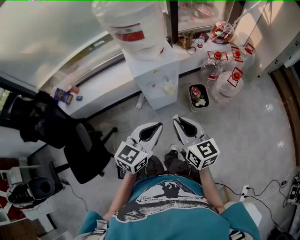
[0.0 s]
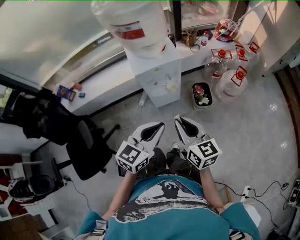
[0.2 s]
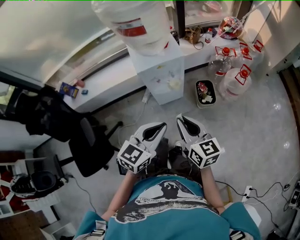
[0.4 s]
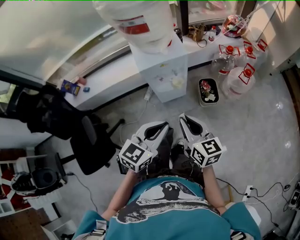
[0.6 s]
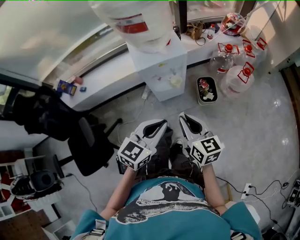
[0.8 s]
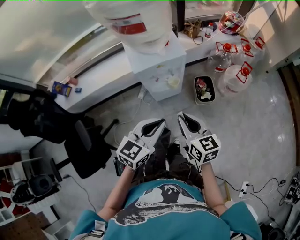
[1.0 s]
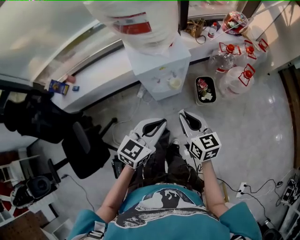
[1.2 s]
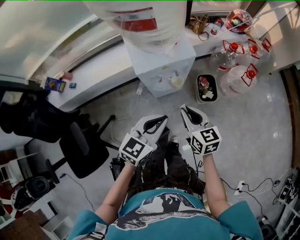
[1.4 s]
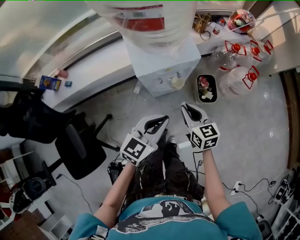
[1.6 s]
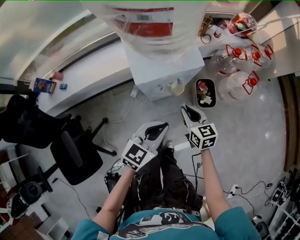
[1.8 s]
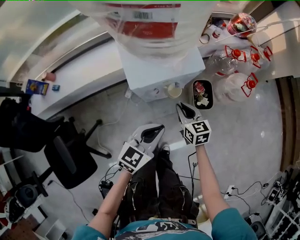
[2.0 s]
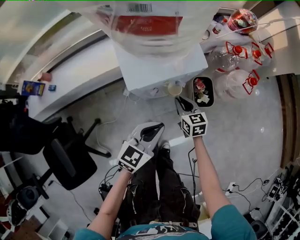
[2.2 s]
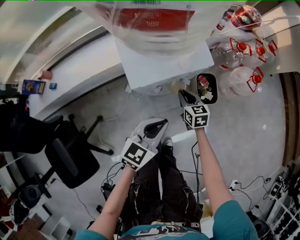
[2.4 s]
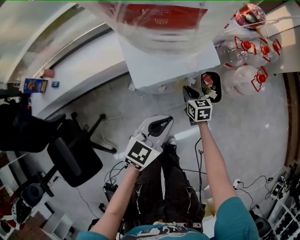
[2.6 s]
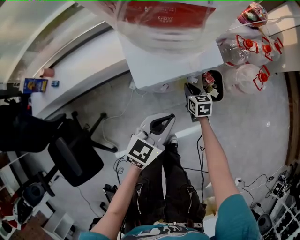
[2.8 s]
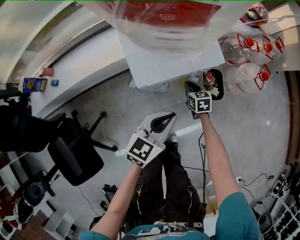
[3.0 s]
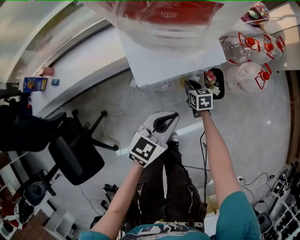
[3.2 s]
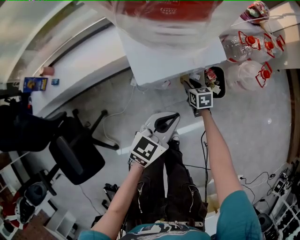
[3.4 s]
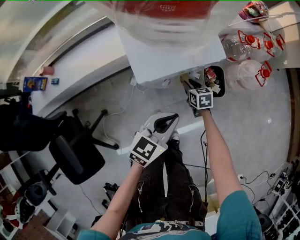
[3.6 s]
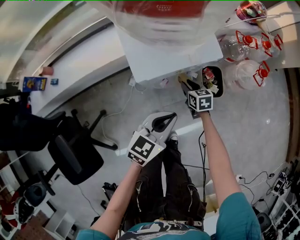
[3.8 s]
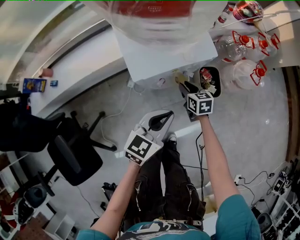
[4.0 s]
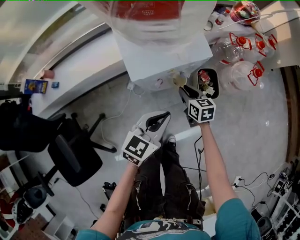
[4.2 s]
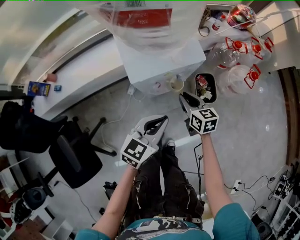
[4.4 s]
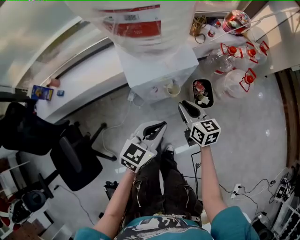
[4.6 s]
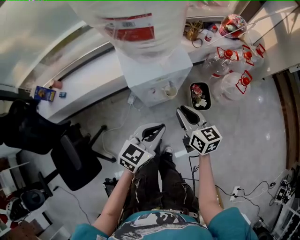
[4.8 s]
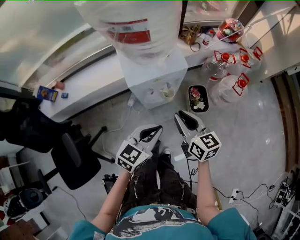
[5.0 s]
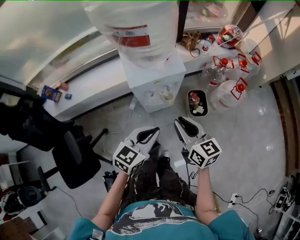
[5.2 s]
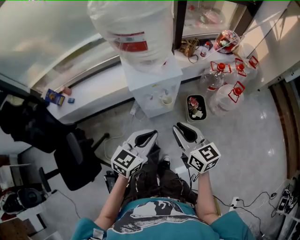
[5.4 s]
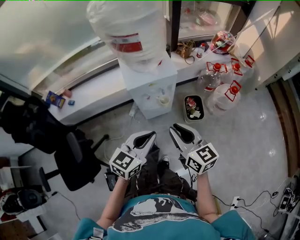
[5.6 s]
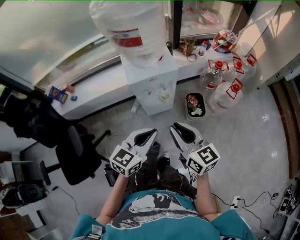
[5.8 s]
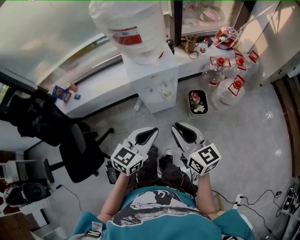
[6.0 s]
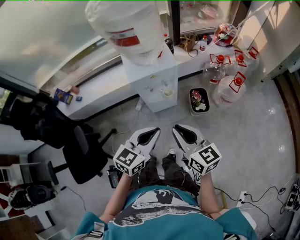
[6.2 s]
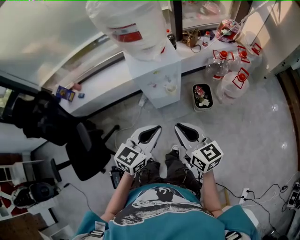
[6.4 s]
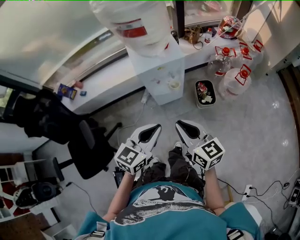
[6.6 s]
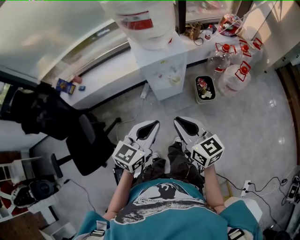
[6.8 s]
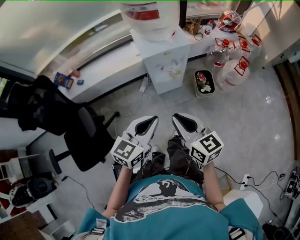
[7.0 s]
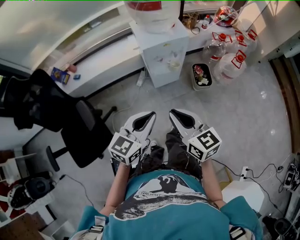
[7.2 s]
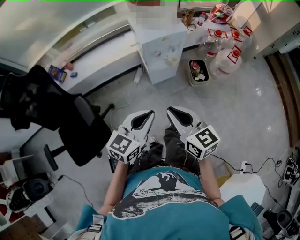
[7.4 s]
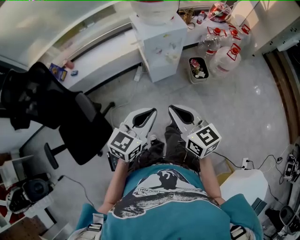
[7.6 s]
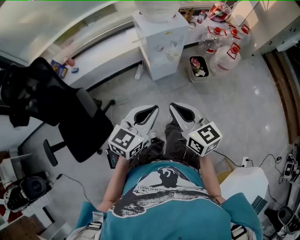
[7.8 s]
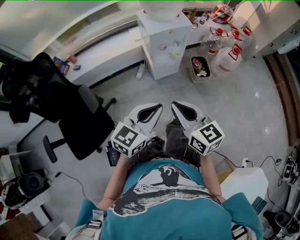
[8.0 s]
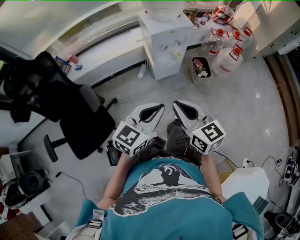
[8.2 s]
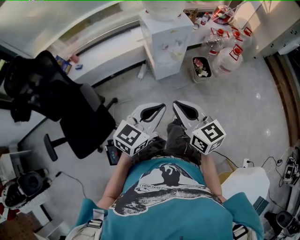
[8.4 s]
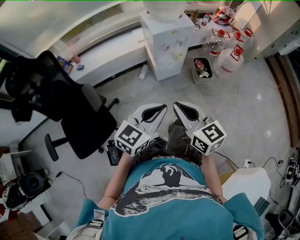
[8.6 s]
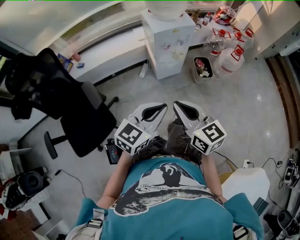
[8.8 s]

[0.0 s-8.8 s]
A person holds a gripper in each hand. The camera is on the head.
0.0 to 1.4 s: The left gripper moves forward and downward, roughly 15 cm. Meanwhile the right gripper shifts approximately 20 cm downward and forward.
1.4 to 3.0 s: The left gripper goes approximately 15 cm downward and forward, while the right gripper travels downward and forward by roughly 35 cm, and rotates about 20 degrees.
3.0 to 4.4 s: The right gripper travels upward and backward by about 15 cm.
4.4 to 5.8 s: The right gripper moves upward and backward, roughly 35 cm, and rotates approximately 20 degrees, while the left gripper goes some 20 cm upward and backward.
5.8 to 7.4 s: The grippers both shift backward and to the left by some 20 cm.
7.4 to 8.8 s: The grippers both shift backward by about 10 cm.

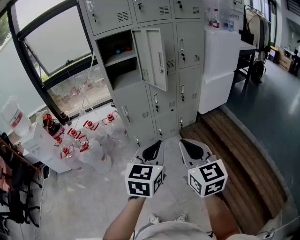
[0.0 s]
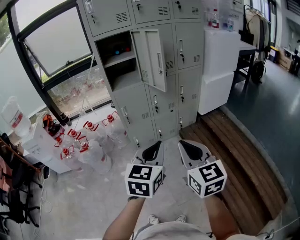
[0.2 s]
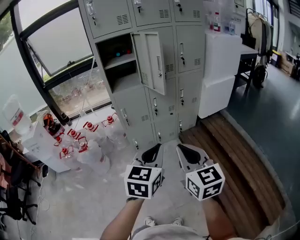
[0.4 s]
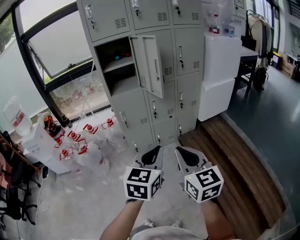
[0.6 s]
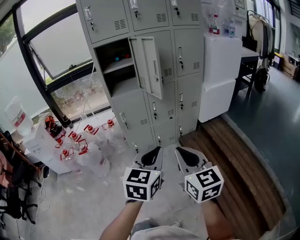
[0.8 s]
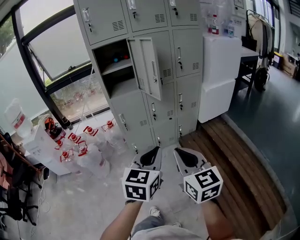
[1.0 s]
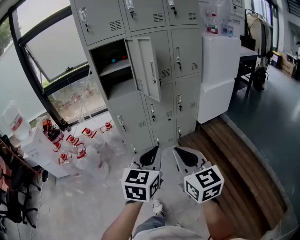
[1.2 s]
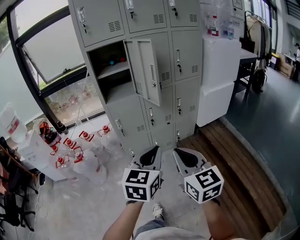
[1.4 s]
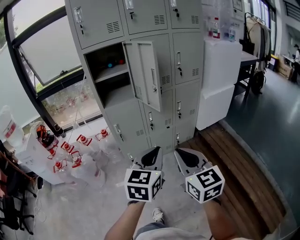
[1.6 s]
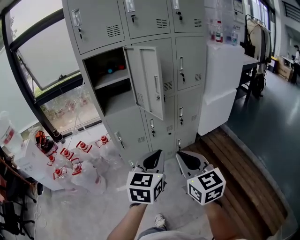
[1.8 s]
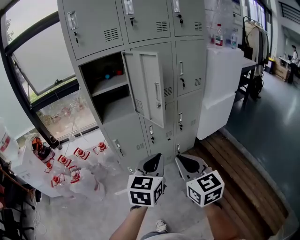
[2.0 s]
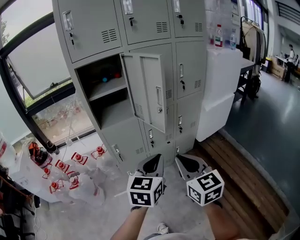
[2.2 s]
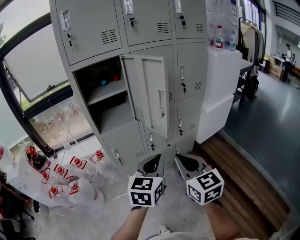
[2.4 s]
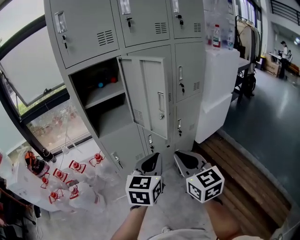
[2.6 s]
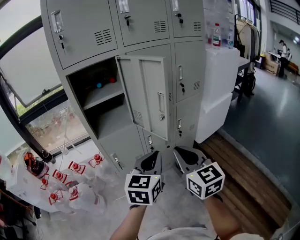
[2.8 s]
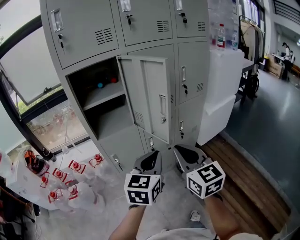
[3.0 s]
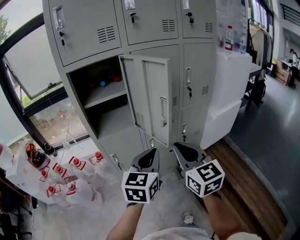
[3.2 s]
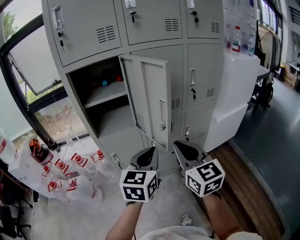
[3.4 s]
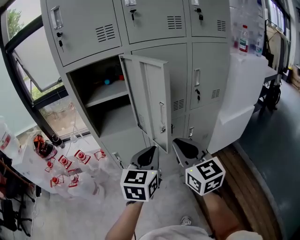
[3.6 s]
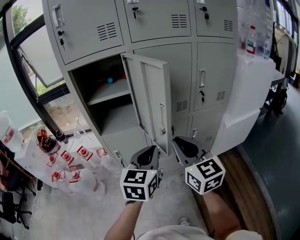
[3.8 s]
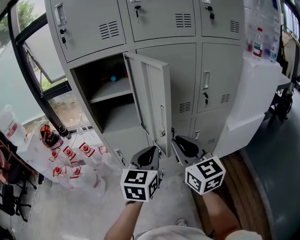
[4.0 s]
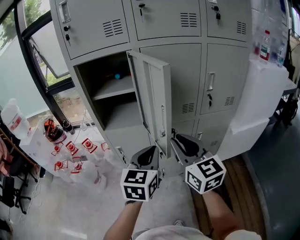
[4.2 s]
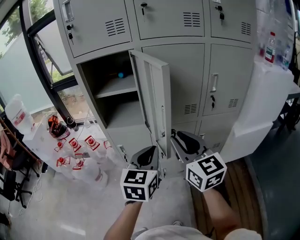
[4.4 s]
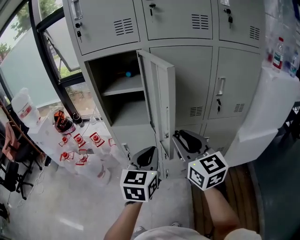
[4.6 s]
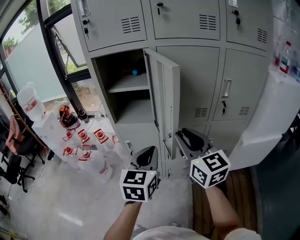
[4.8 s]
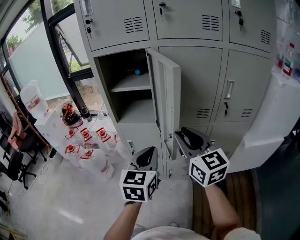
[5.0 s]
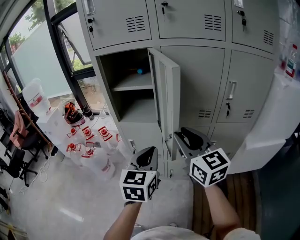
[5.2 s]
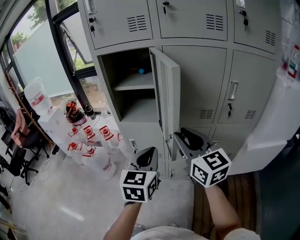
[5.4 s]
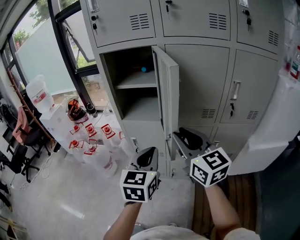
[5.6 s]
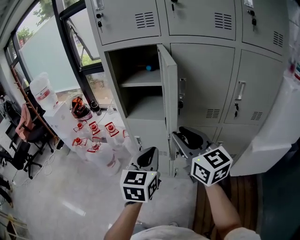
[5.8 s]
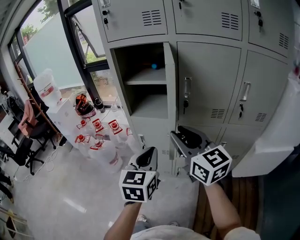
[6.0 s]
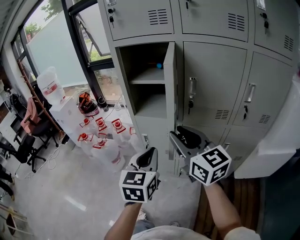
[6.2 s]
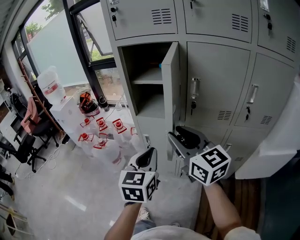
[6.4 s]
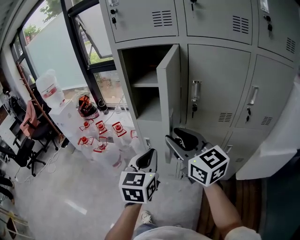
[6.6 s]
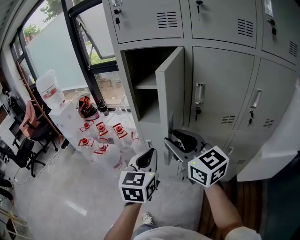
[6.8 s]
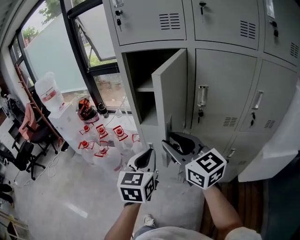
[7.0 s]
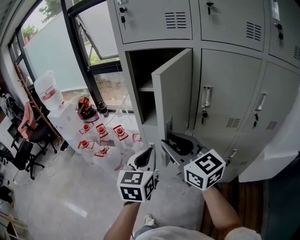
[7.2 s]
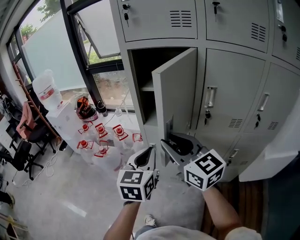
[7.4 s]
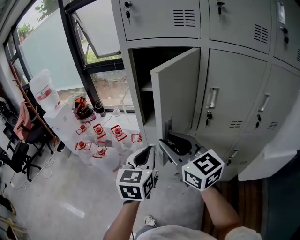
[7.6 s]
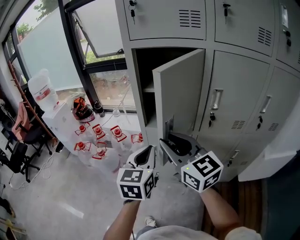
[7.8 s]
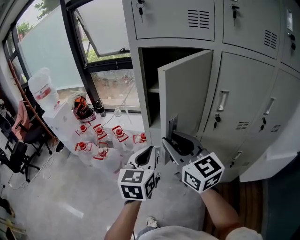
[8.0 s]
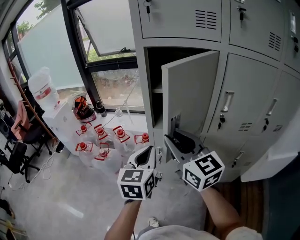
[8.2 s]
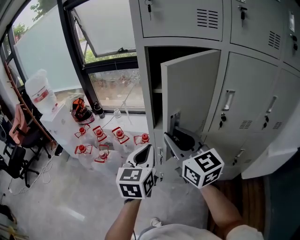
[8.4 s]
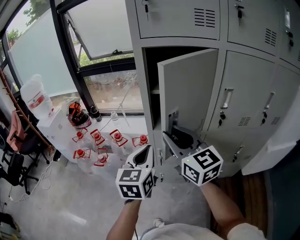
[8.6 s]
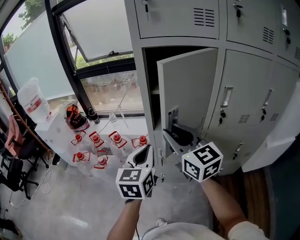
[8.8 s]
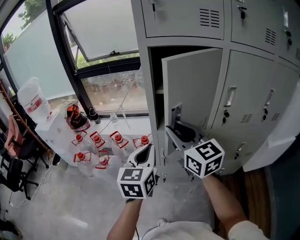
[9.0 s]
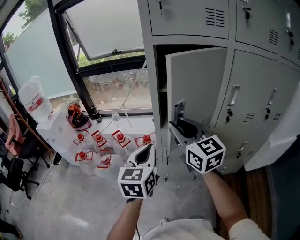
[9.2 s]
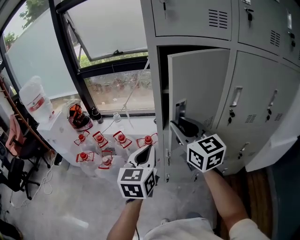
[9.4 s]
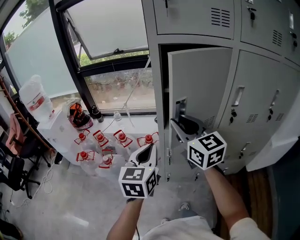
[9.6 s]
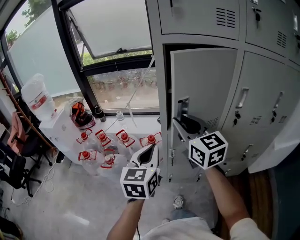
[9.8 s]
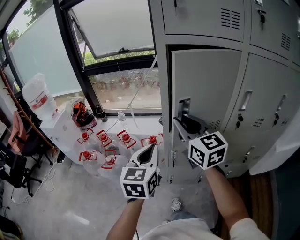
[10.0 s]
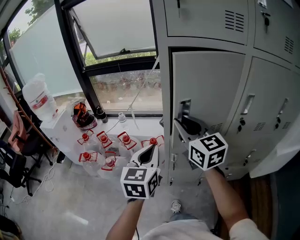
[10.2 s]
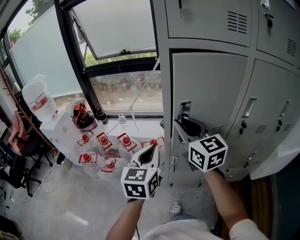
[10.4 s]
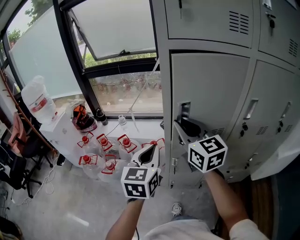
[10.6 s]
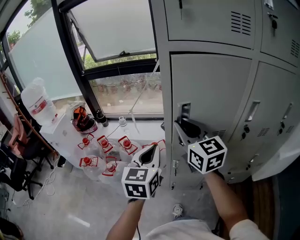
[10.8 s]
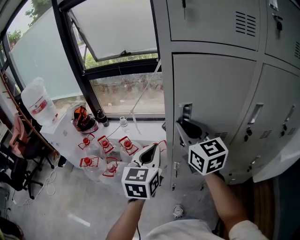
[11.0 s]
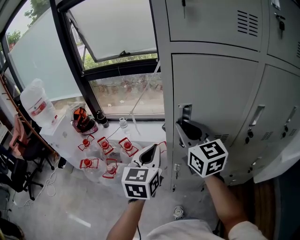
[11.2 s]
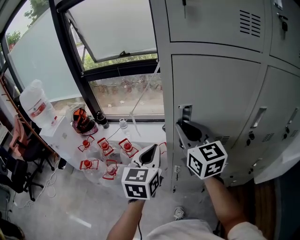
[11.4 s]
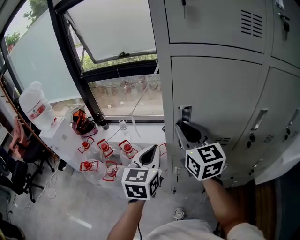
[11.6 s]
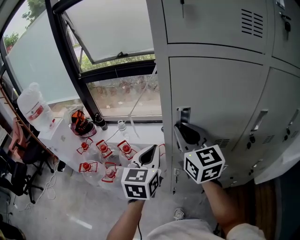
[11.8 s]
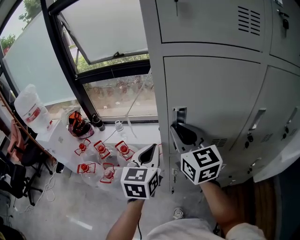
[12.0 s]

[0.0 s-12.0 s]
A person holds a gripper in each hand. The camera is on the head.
0.0 to 1.6 s: The left gripper travels forward and to the right by roughly 15 cm; the right gripper shifts some 10 cm forward.
1.6 to 3.0 s: Both grippers move forward, some 20 cm.
3.0 to 4.4 s: The left gripper changes place by approximately 10 cm, and swivels about 30 degrees. The right gripper shifts by approximately 15 cm, and rotates some 30 degrees.
4.4 to 6.0 s: Both grippers travel together to the left, approximately 5 cm. The right gripper changes its angle by about 20 degrees.
6.0 to 7.6 s: The left gripper shifts about 15 cm forward and to the left. Meanwhile the right gripper heads to the left and forward, covering some 15 cm.
7.6 to 9.0 s: The left gripper moves to the left and forward, about 10 cm. The right gripper goes some 10 cm forward and to the left.
9.0 to 10.4 s: The grippers both shift forward by roughly 5 cm.
10.4 to 12.0 s: The two grippers go approximately 10 cm forward.

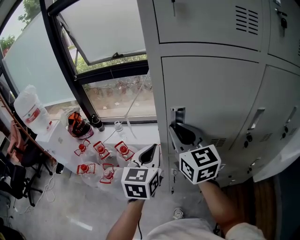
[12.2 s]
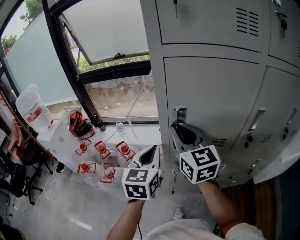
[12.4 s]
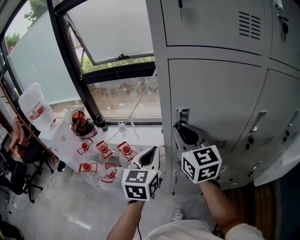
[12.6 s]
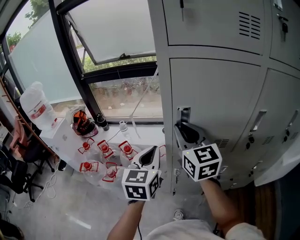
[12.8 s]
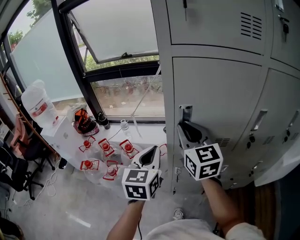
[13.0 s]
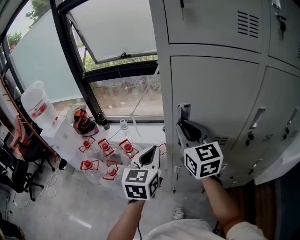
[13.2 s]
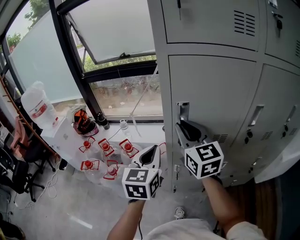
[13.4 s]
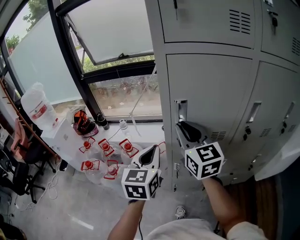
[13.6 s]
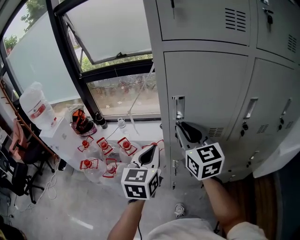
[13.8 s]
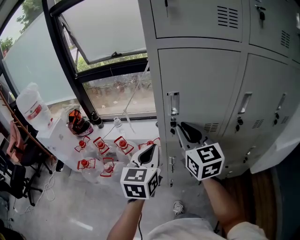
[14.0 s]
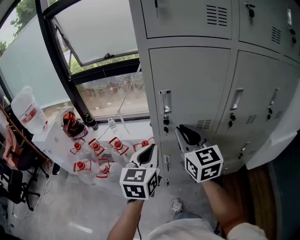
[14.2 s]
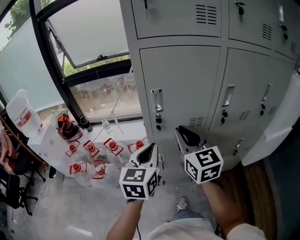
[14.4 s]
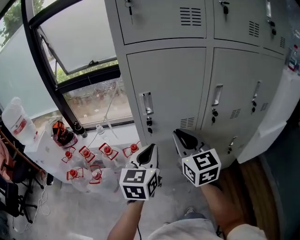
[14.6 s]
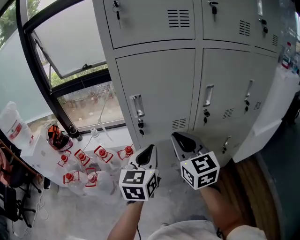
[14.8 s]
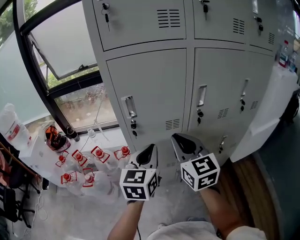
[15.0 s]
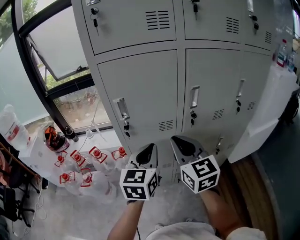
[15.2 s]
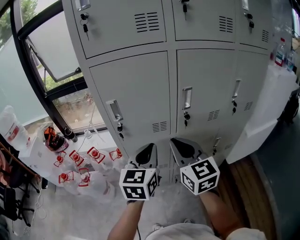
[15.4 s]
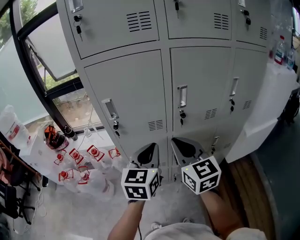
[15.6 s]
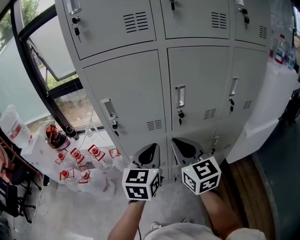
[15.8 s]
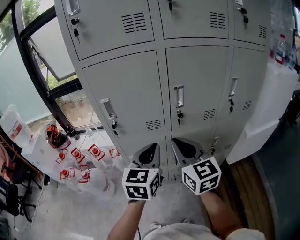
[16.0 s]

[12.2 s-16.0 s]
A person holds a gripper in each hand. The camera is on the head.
12.2 to 13.4 s: The grippers stay close to where they were, moving slightly.
13.4 to 14.8 s: The left gripper heads to the right and backward, covering roughly 15 cm. Meanwhile the right gripper goes some 15 cm backward and to the right.
14.8 to 16.0 s: Both grippers travel together to the right, some 15 cm.
